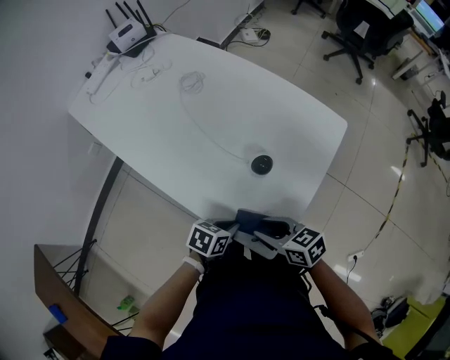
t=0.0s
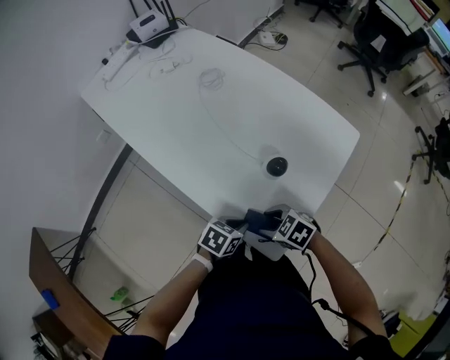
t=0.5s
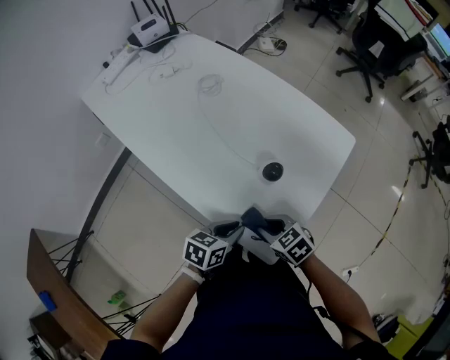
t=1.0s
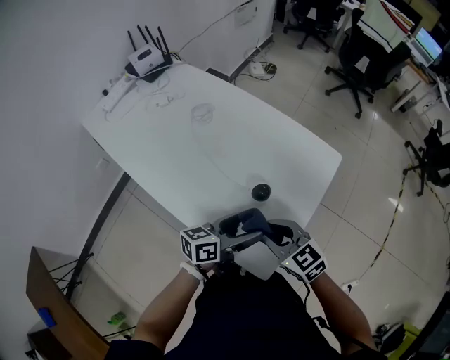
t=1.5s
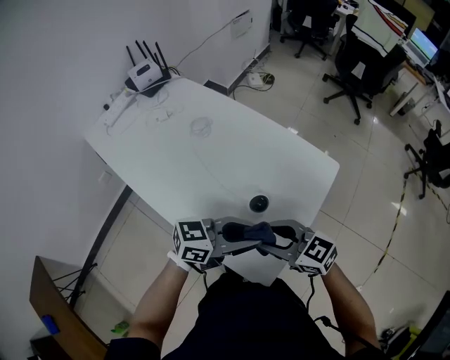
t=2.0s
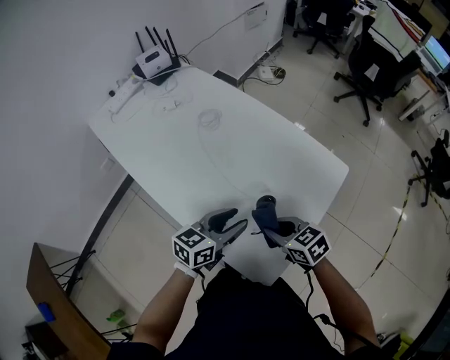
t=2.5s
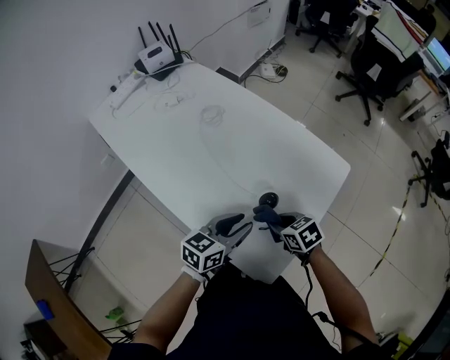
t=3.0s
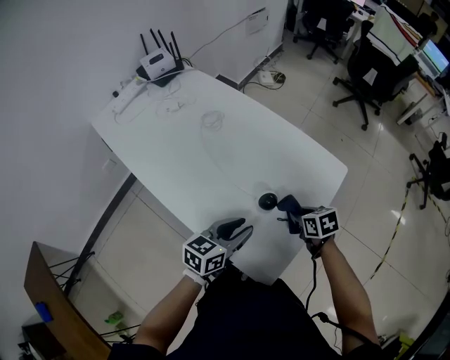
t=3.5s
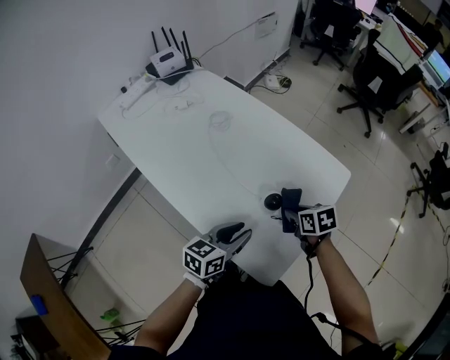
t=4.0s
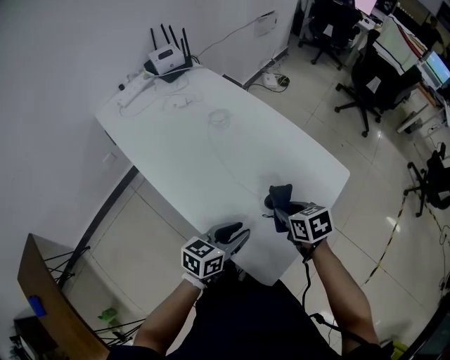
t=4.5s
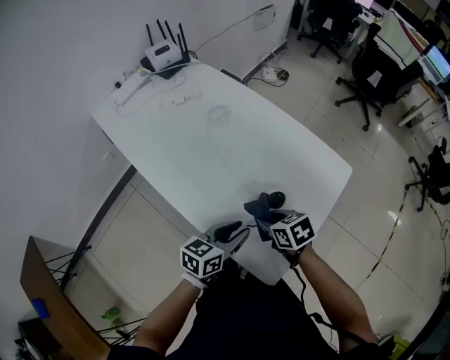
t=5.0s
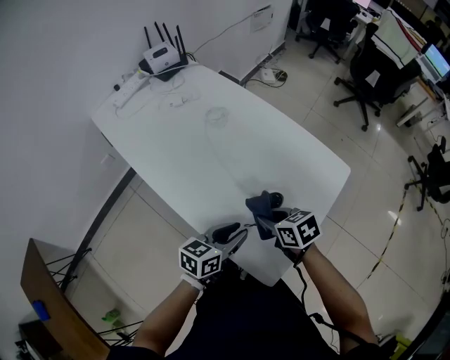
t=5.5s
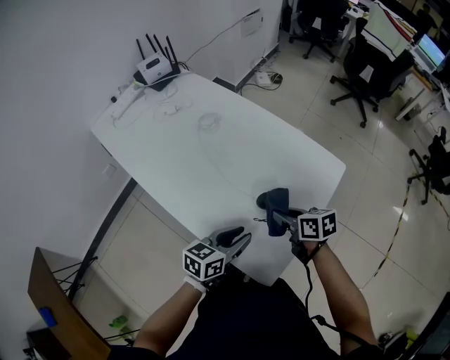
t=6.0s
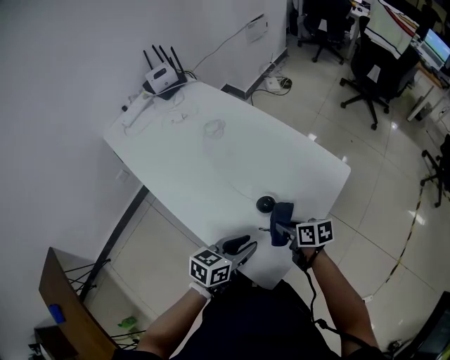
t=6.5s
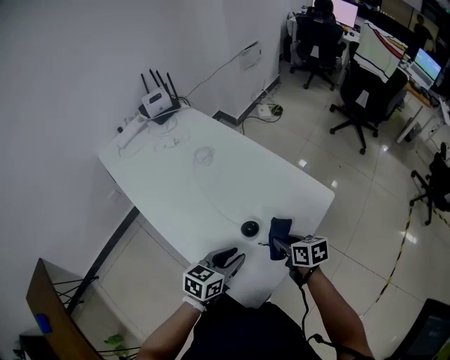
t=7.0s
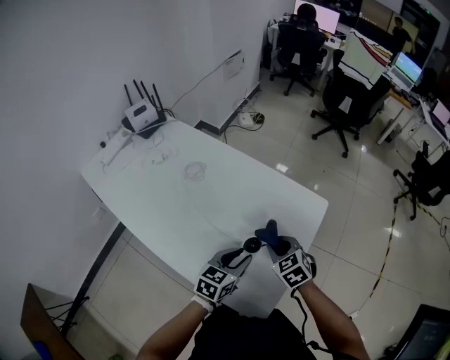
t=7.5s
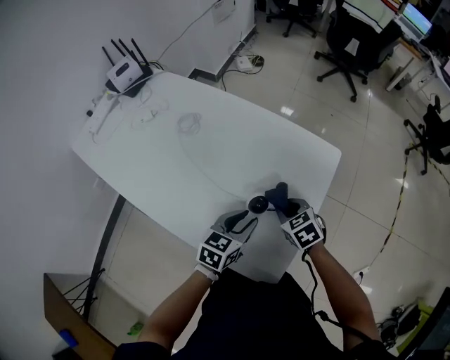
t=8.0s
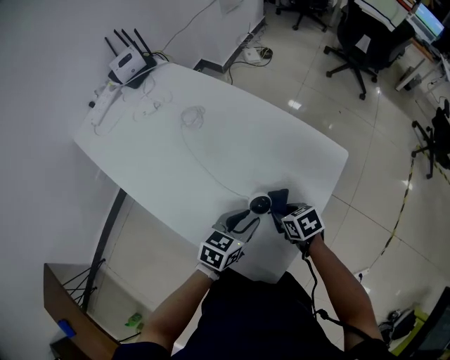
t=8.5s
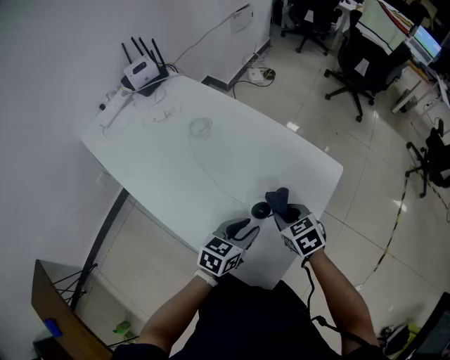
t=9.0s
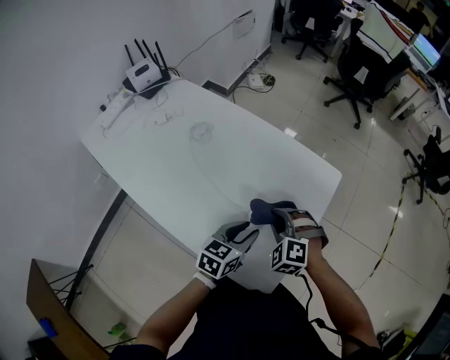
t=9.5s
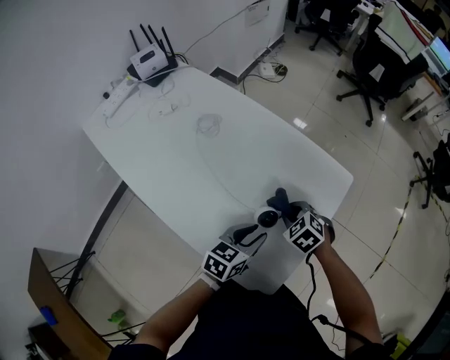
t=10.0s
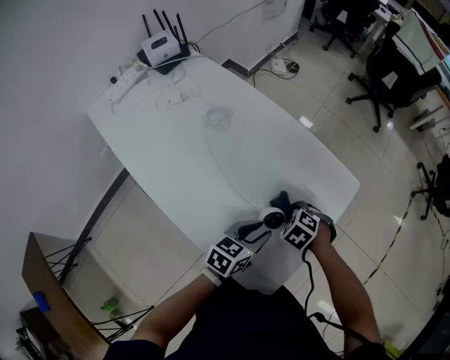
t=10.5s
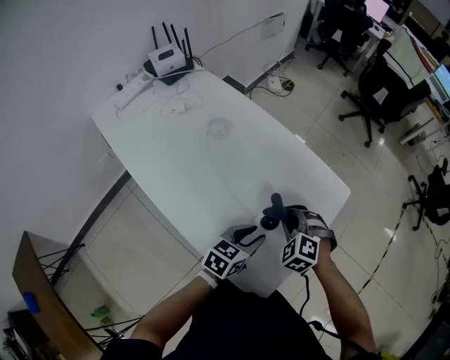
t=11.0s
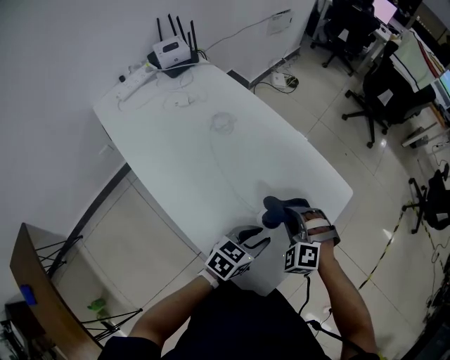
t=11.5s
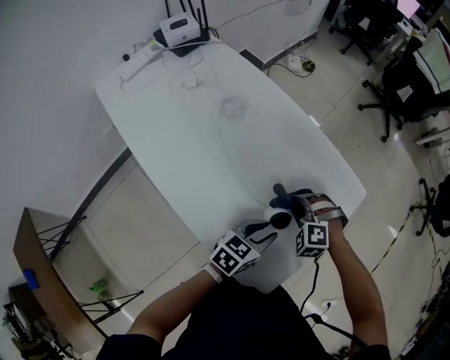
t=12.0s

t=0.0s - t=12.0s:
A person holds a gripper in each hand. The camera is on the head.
t=0.0s - t=2.0s: The right gripper goes roughly 10 cm upward, and rotates some 30 degrees. The left gripper heads upward, covering approximately 25 cm, tips its fingers upward by approximately 50 degrees, and opens, then closes once more.
t=2.0s - t=4.0s: Both grippers move downward, roughly 10 cm. The left gripper swivels approximately 40 degrees; the right gripper tilts its fingers about 30 degrees downward, and closes its fingers.
t=4.0s - t=6.0s: The right gripper travels to the left and back again, approximately 10 cm each way.
t=6.0s - t=8.0s: The left gripper moves forward, some 5 cm. Meanwhile the right gripper moves up and down over approximately 5 cm, changing direction 2 times, and changes its angle by some 40 degrees.
t=8.0s - t=10.0s: The right gripper moves up and down over roughly 10 cm, changing direction 2 times, and changes its angle by roughly 30 degrees.
t=10.0s - t=12.0s: The right gripper goes upward and returns, some 5 cm each way, and rolls counterclockwise, seen from behind, by some 50 degrees.

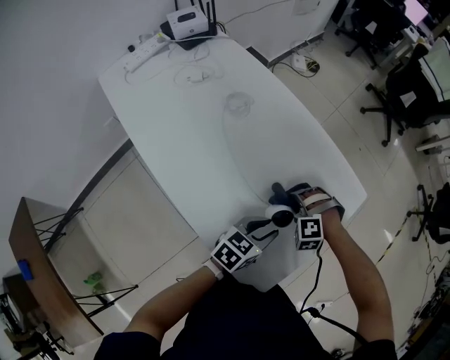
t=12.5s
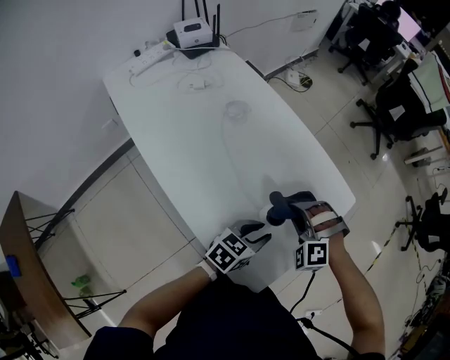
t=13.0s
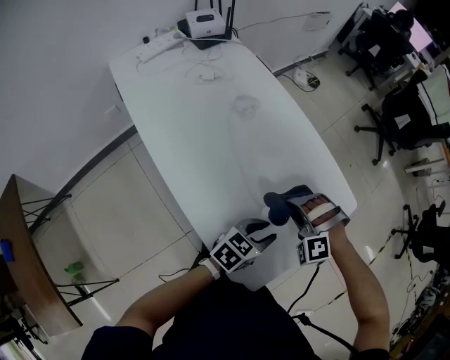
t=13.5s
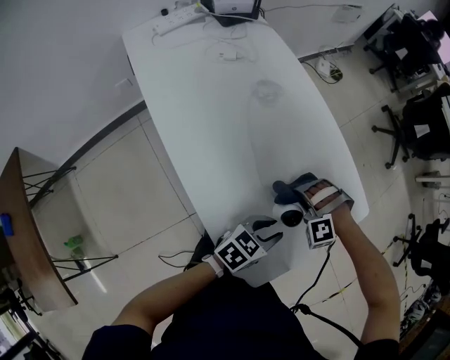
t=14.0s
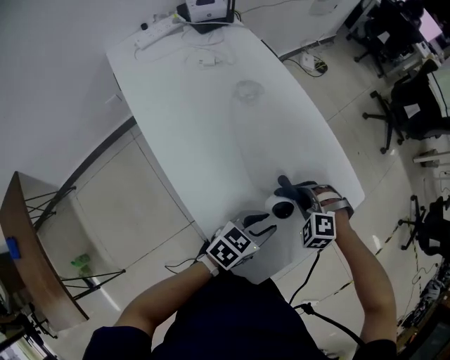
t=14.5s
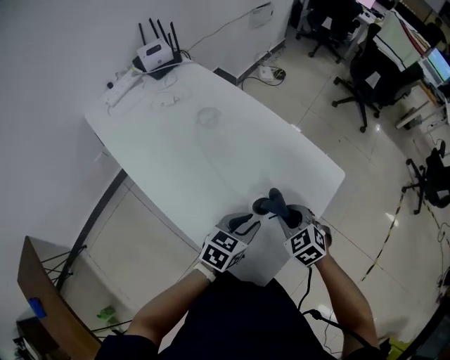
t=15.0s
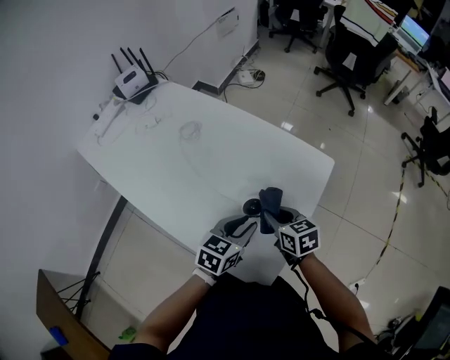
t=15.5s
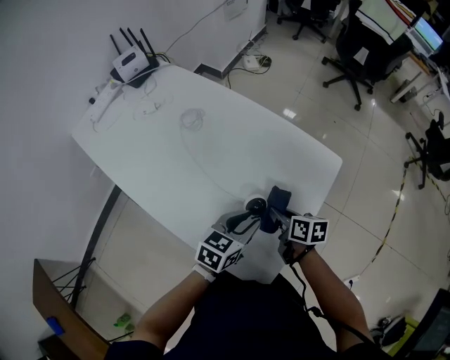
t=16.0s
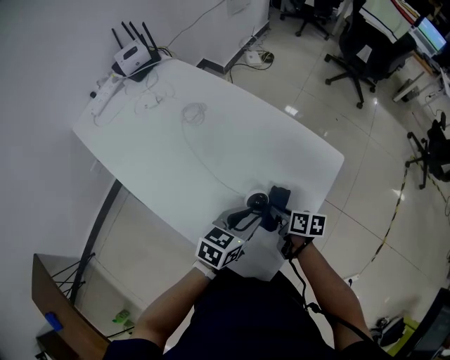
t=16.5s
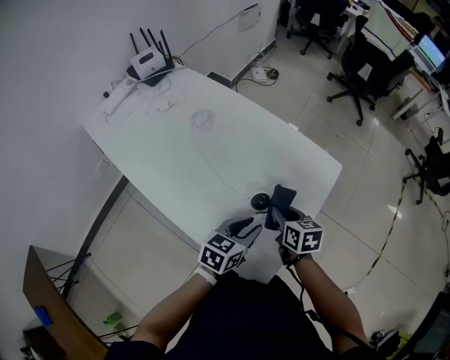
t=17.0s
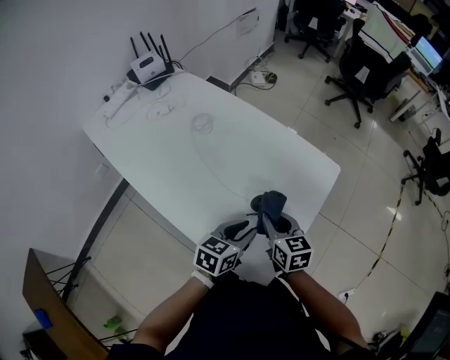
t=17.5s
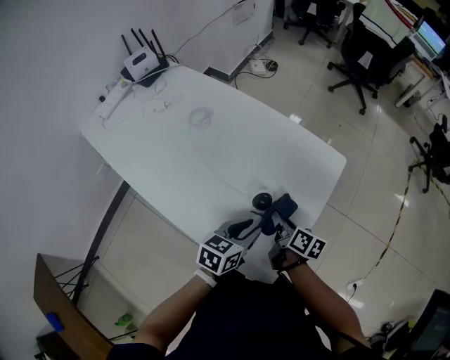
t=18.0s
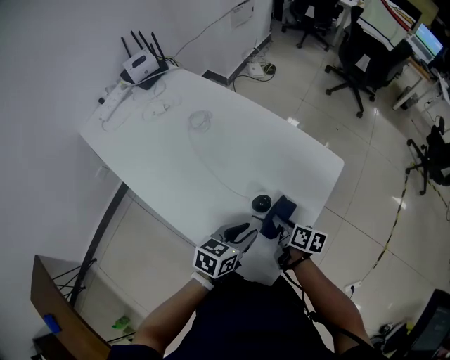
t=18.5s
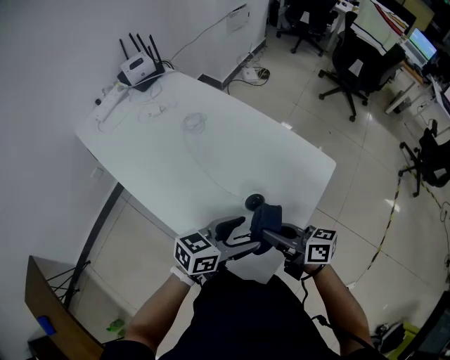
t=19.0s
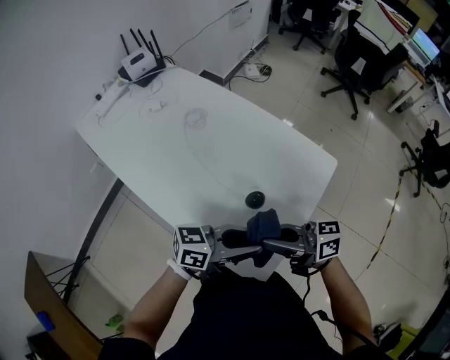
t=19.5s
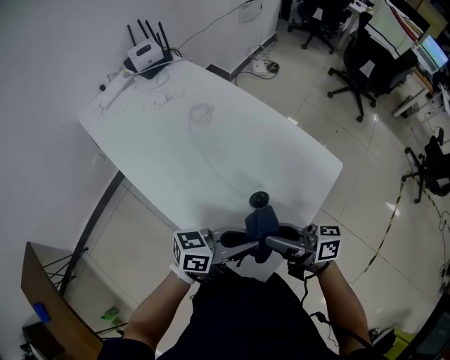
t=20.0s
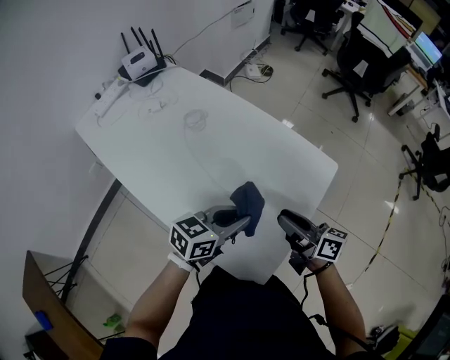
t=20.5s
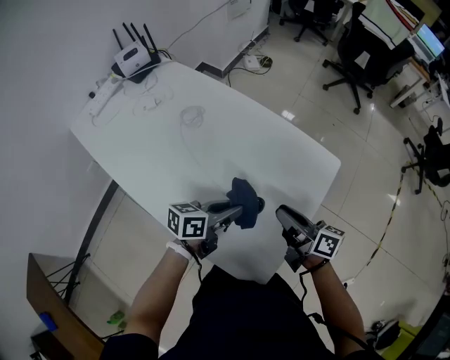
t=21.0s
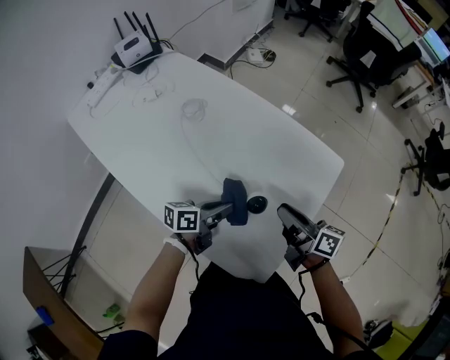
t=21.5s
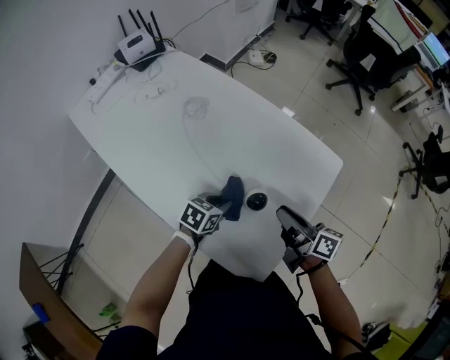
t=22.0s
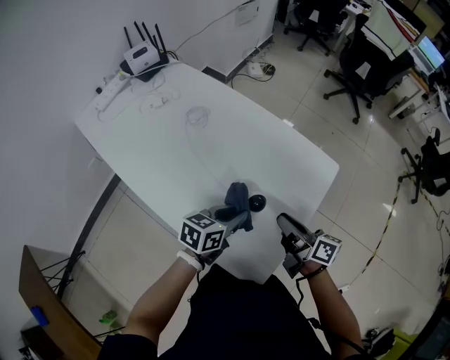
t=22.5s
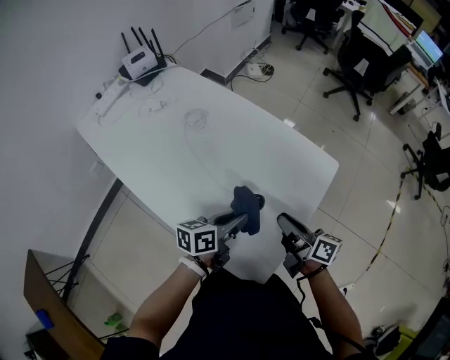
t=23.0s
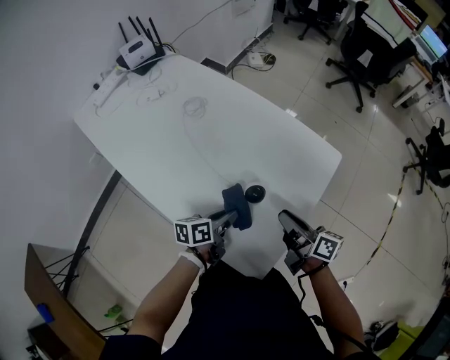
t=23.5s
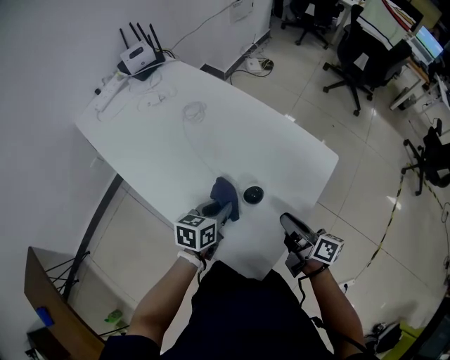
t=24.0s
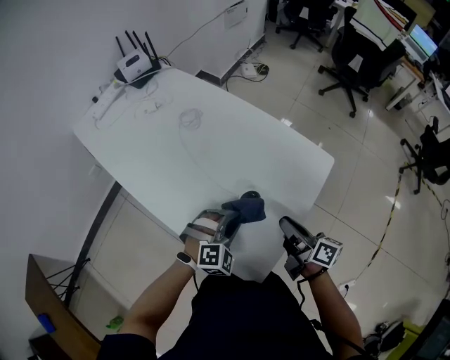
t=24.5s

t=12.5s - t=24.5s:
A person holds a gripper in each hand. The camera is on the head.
t=12.5s - t=14.5s: The right gripper goes upward and returns, approximately 10 cm each way.
t=14.5s - t=16.5s: The right gripper moves backward and to the right, some 10 cm, and rolls clockwise, seen from behind, by approximately 120 degrees.
t=16.5s - t=18.5s: The right gripper travels upward and back again, about 10 cm each way.
t=18.5s - t=20.5s: The right gripper heads upward, covering roughly 15 cm, and rotates approximately 30 degrees. Meanwhile the left gripper travels upward by roughly 10 cm, and opens, then closes once more.
t=20.5s - t=22.5s: The left gripper heads downward, covering approximately 5 cm.
t=22.5s - t=24.5s: The left gripper rotates around the line of its fingers by about 80 degrees, clockwise from behind.

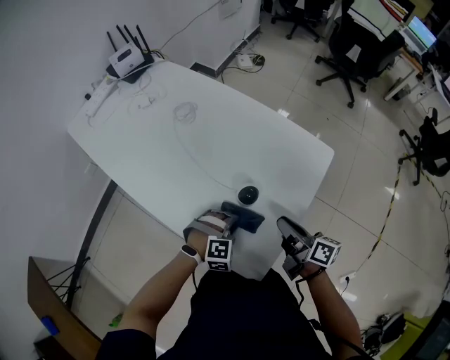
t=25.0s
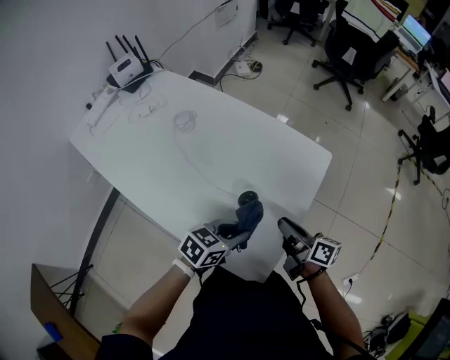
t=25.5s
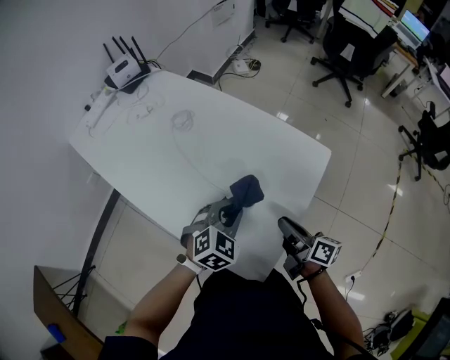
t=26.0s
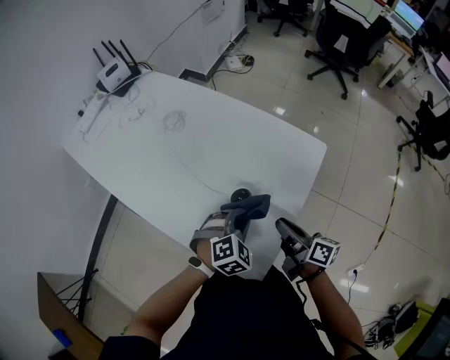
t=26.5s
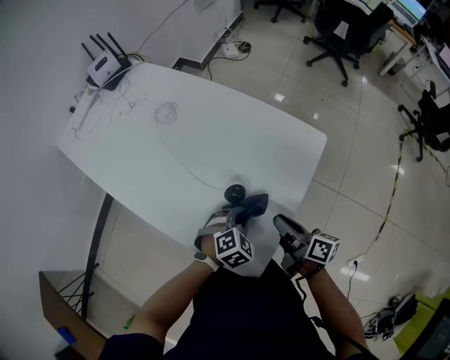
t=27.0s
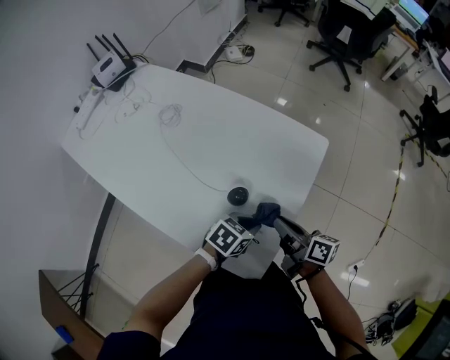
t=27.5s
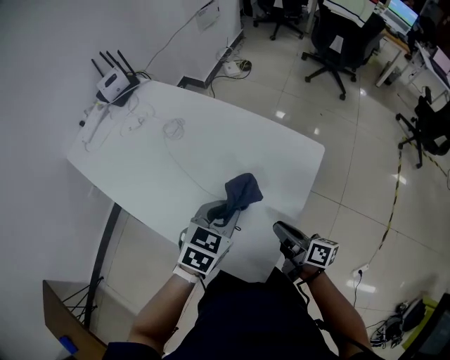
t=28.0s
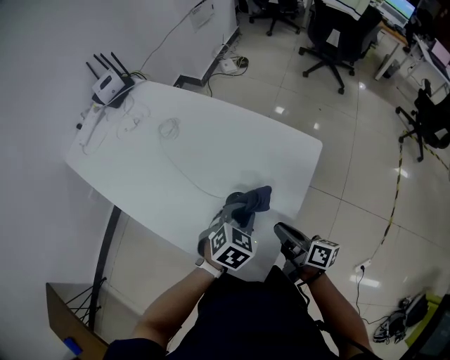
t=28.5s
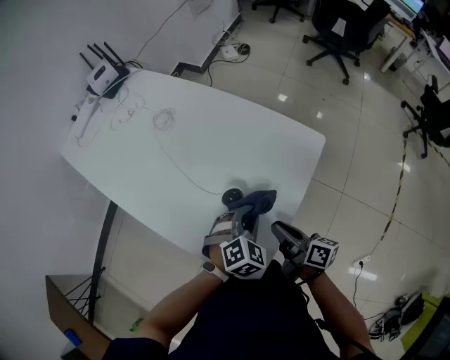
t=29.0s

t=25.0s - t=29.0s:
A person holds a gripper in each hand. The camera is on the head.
t=25.0s - t=27.0s: The left gripper heads to the right, covering roughly 5 cm, travels upward and back again, some 15 cm each way, and turns by about 30 degrees.
t=27.0s - t=29.0s: The left gripper moves upward, some 5 cm.
